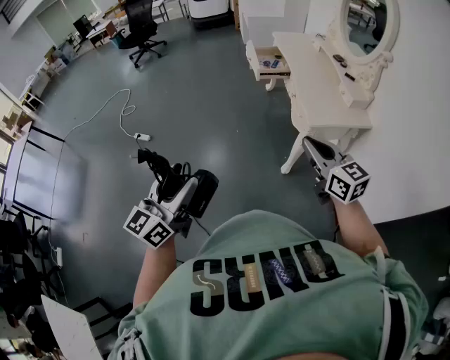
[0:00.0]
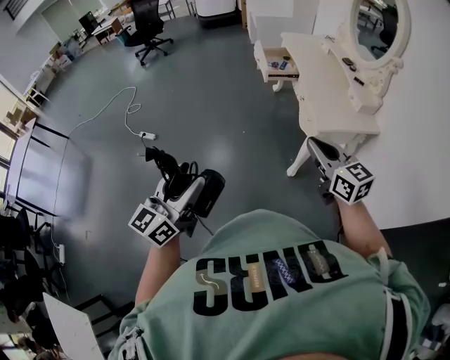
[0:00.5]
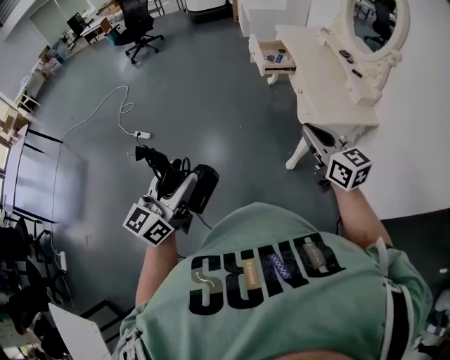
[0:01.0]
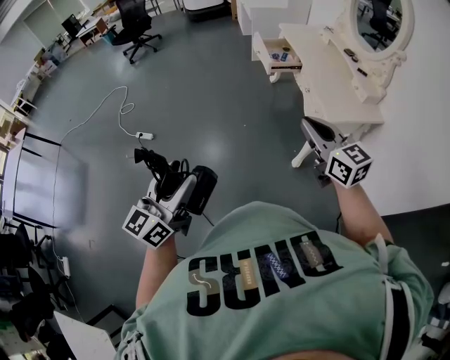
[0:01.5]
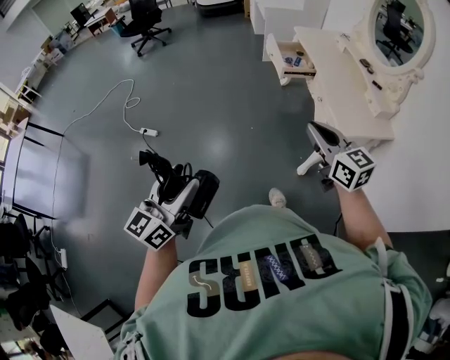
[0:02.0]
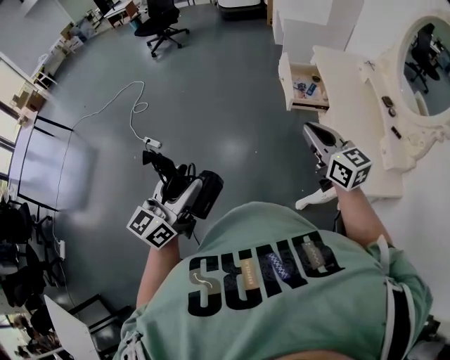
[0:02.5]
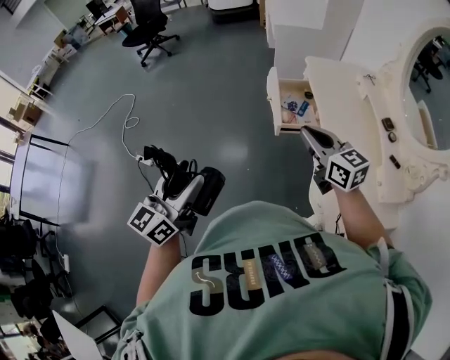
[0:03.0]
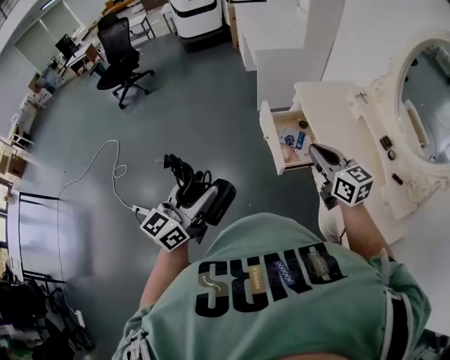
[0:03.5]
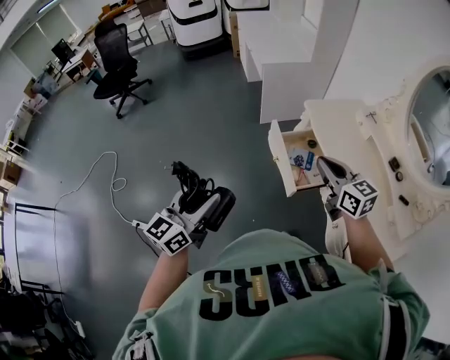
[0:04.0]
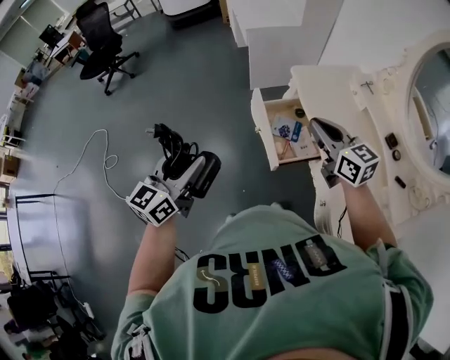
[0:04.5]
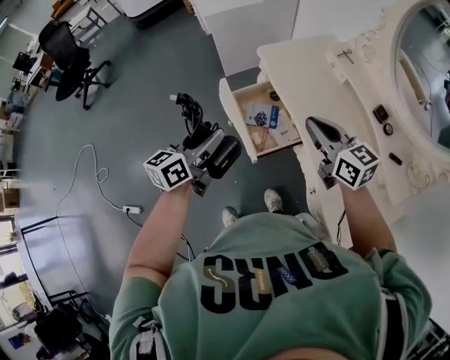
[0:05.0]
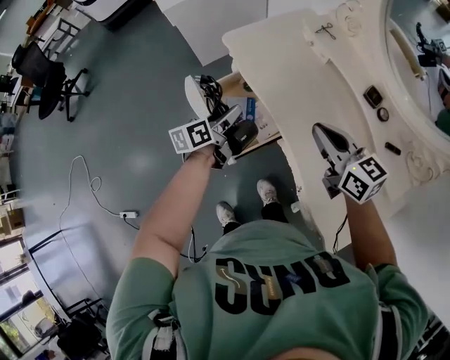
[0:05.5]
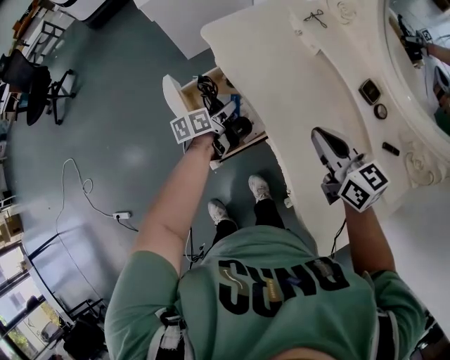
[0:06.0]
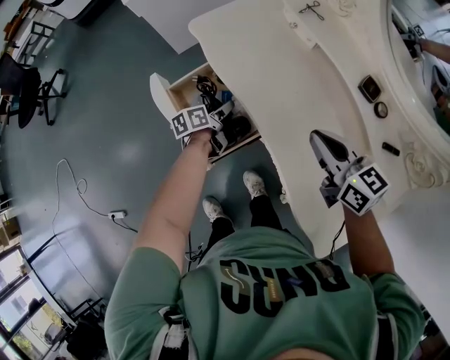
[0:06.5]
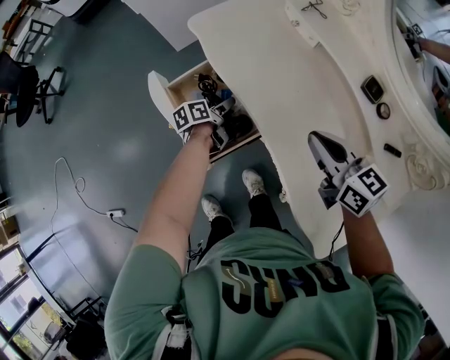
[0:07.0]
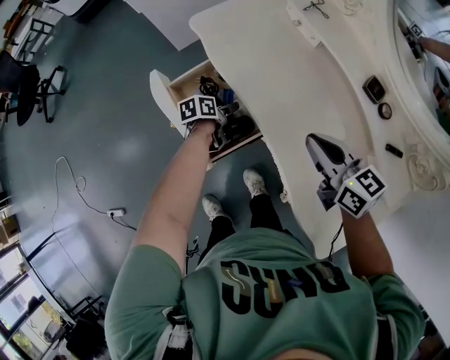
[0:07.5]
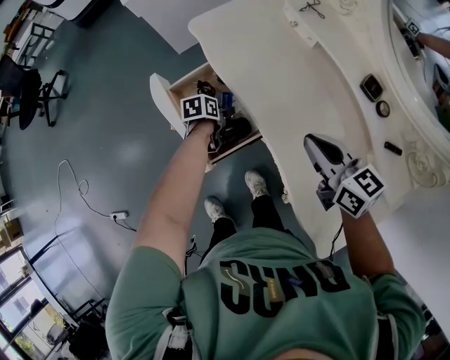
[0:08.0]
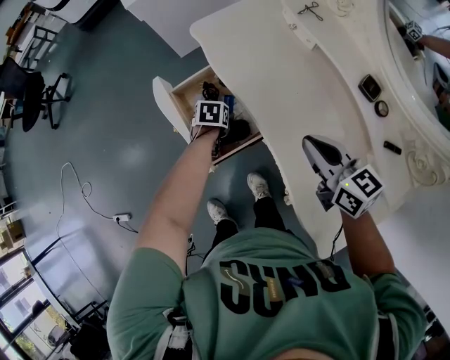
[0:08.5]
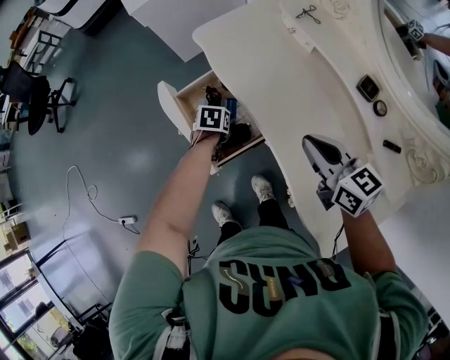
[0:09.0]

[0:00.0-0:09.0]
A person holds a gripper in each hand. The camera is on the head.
0.0 to 2.0 s: The left gripper moves to the left and forward, approximately 15 cm. Meanwhile the right gripper travels forward and to the left by about 20 cm.
2.0 to 4.5 s: The two grippers travel together, forward, about 70 cm.
4.5 to 7.0 s: The right gripper moves to the right and downward, some 30 cm, and changes its angle by roughly 20 degrees. The left gripper is displaced downward, to the right and forward by about 60 cm, and turns by roughly 60 degrees.
7.0 to 9.0 s: The left gripper tips its fingers downward by approximately 40 degrees.

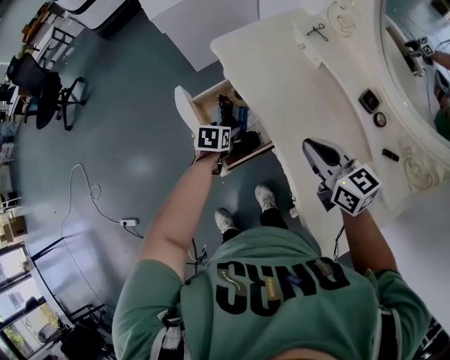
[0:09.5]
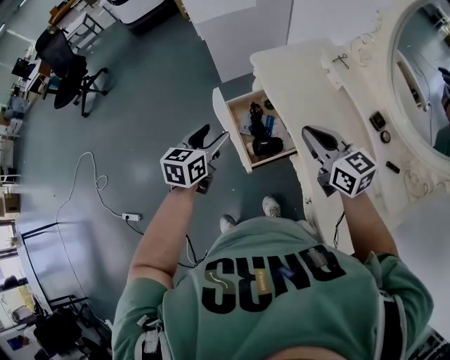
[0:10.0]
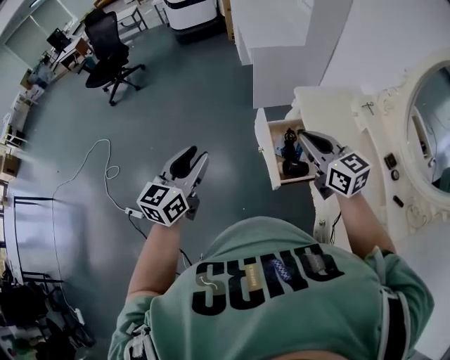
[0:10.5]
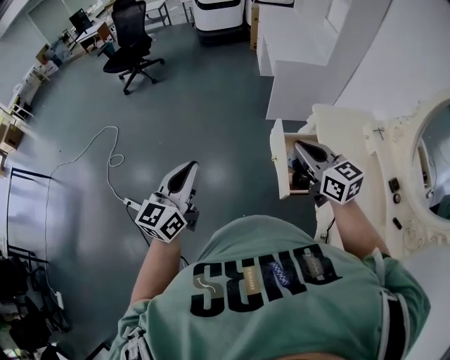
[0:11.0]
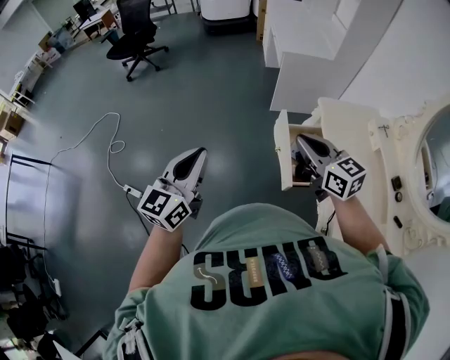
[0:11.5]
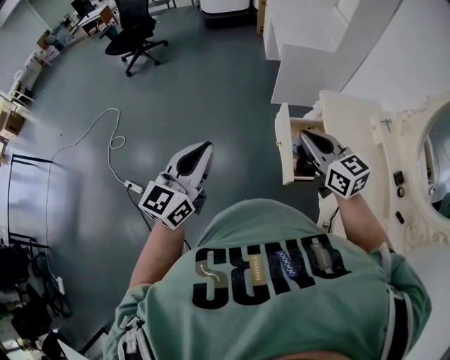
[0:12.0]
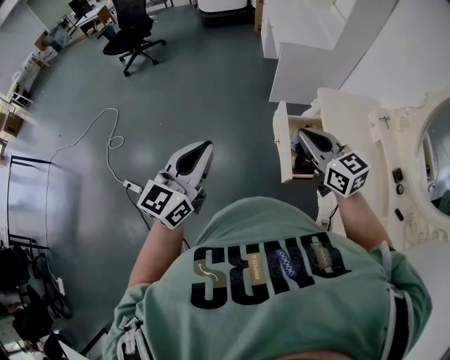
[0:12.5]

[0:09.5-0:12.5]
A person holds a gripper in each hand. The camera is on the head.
9.5 to 11.0 s: The left gripper moves roughly 60 cm, points its fingers approximately 60 degrees further upward, and closes its fingers; the right gripper changes place by some 40 cm, and rotates roughly 30 degrees.
11.0 to 12.5 s: The grippers move only a little.

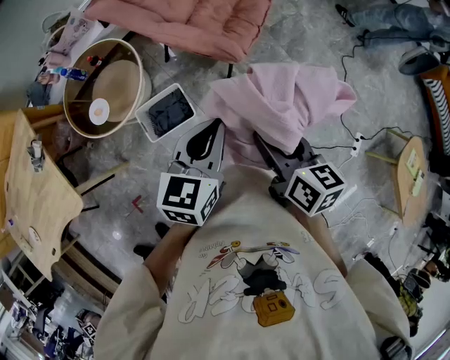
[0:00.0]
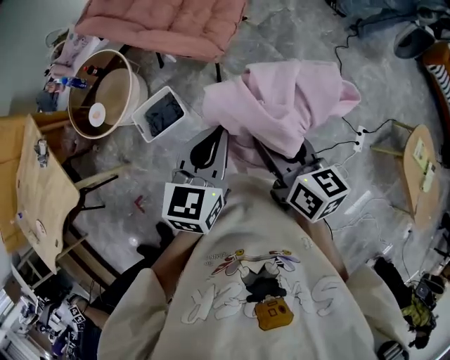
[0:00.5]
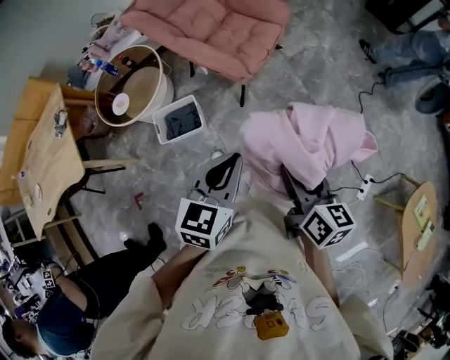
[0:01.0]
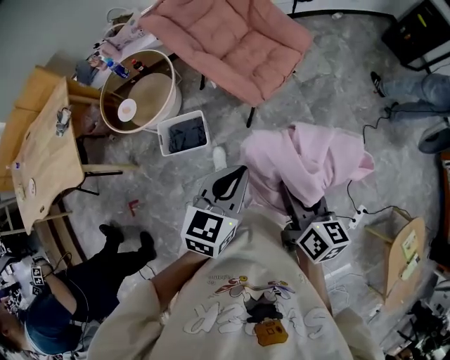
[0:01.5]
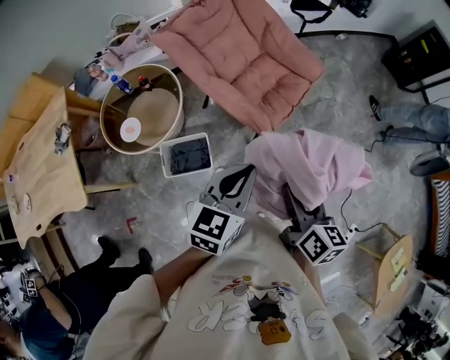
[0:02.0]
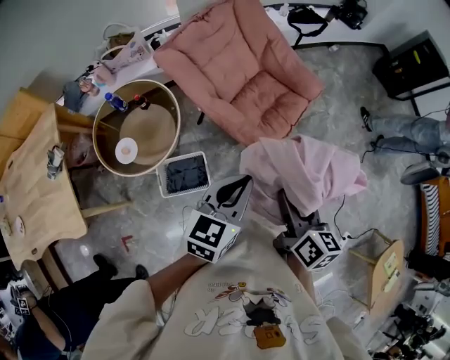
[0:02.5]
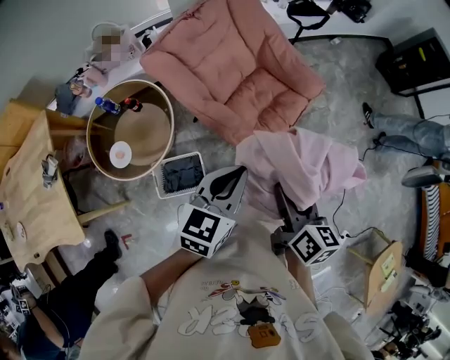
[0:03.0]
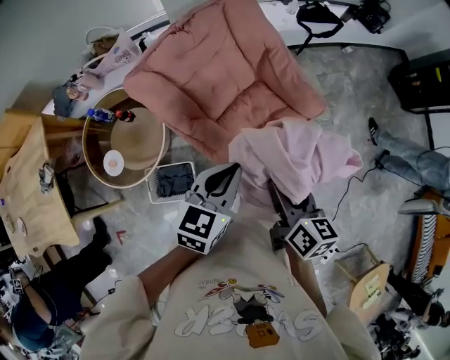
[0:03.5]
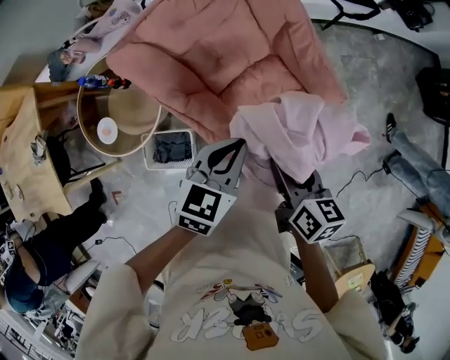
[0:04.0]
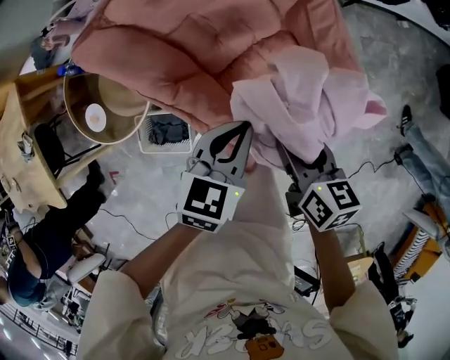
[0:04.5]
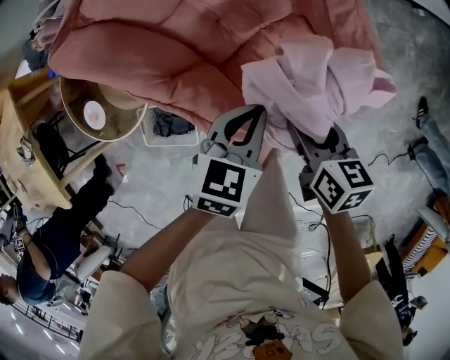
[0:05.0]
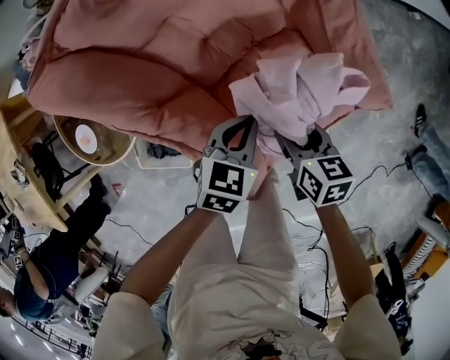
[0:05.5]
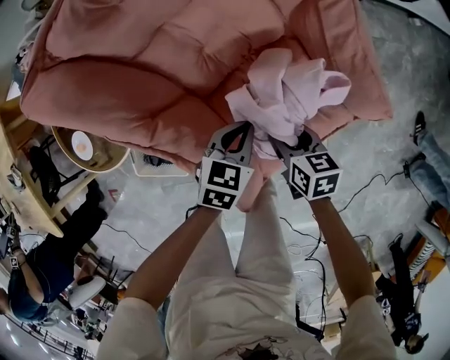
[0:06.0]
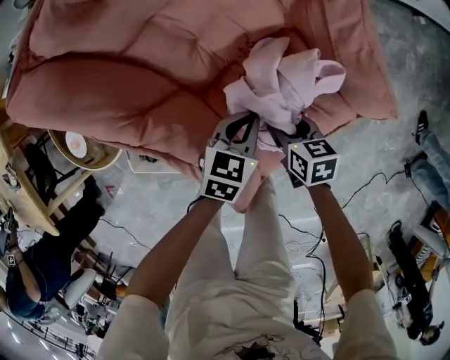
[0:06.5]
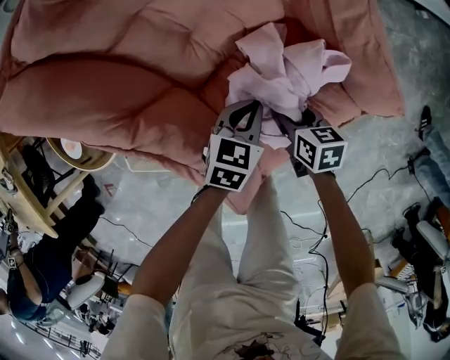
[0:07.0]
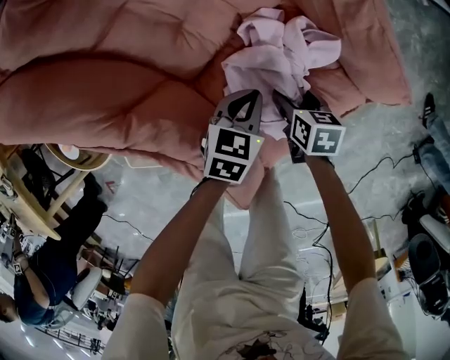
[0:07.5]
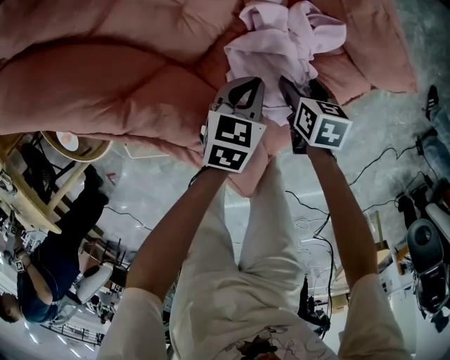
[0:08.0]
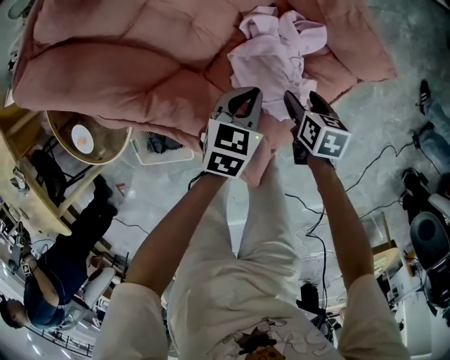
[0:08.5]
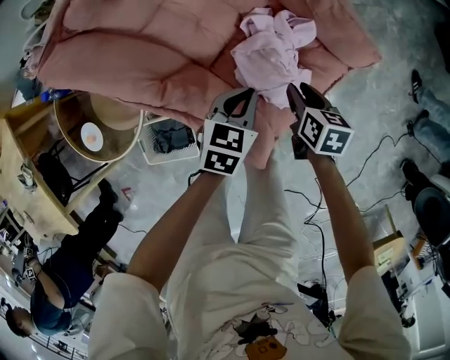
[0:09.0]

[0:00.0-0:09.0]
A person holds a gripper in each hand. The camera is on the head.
0.0 to 2.0 s: Both grippers move forward, some 10 cm. The right gripper moves about 20 cm to the right and comes back.
2.0 to 4.5 s: The two grippers travel together, forward, about 50 cm. The two grippers go some 20 cm downward. The left gripper changes its angle by about 20 degrees. Meanwhile the right gripper swivels some 30 degrees.
4.5 to 7.0 s: The two grippers go about 35 cm downward.
7.0 to 9.0 s: The left gripper heads upward and backward, covering some 15 cm; the right gripper travels upward by some 15 cm, and rotates approximately 20 degrees.

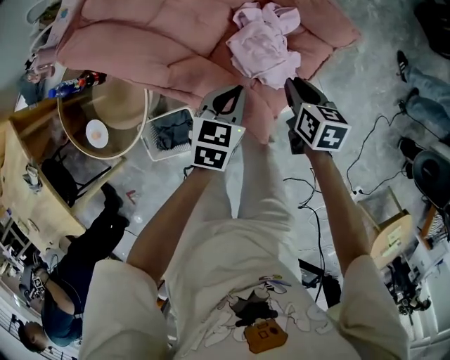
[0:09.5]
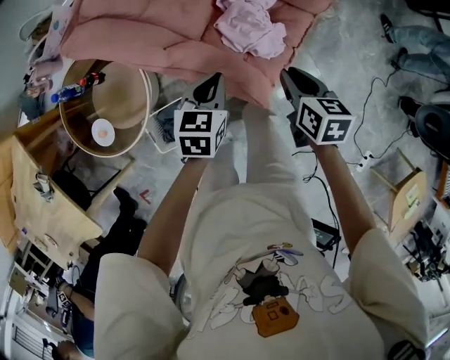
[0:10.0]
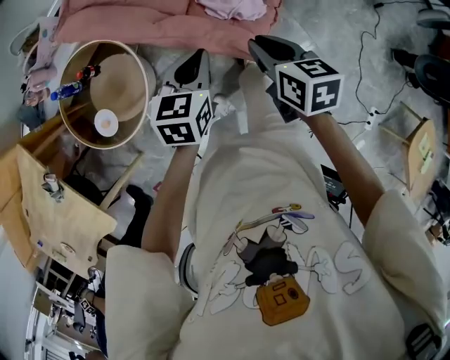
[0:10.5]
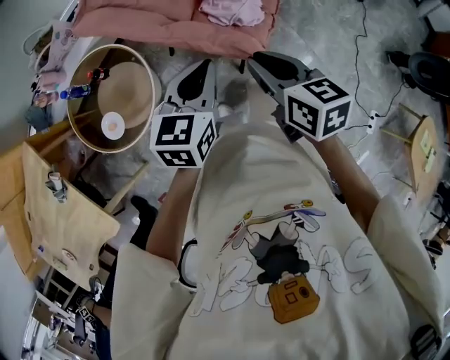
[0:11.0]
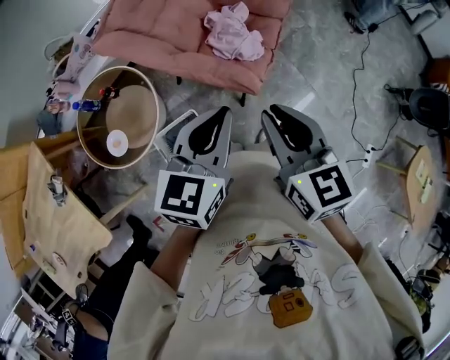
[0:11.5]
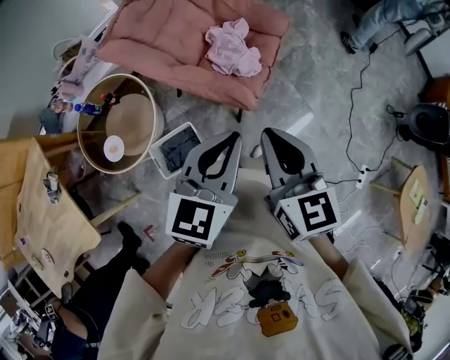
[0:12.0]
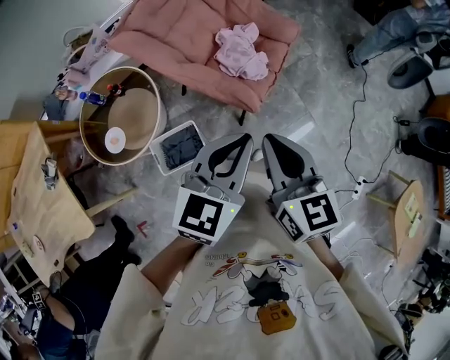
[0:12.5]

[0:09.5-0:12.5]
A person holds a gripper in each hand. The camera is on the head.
9.5 to 11.0 s: The left gripper shifts some 30 cm upward and backward; the right gripper shifts roughly 40 cm backward, upward and to the left.
11.0 to 12.5 s: The left gripper travels upward, to the right and backward by roughly 20 cm; the right gripper is displaced upward, backward and to the right by about 15 cm.

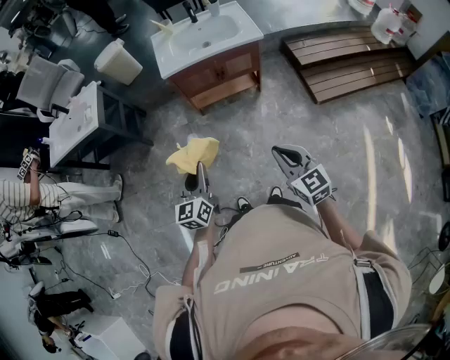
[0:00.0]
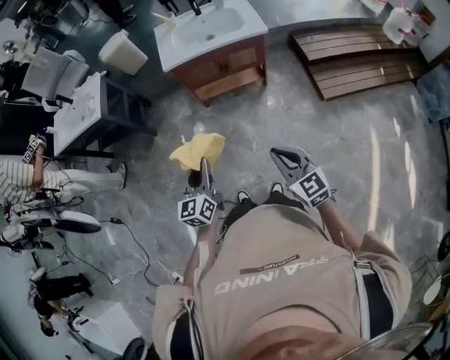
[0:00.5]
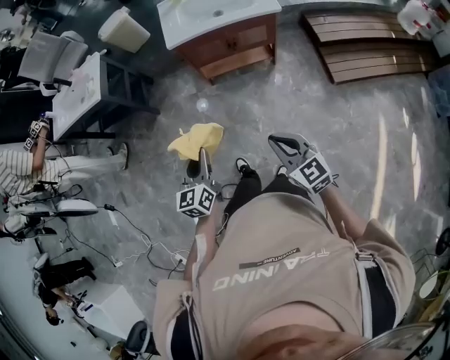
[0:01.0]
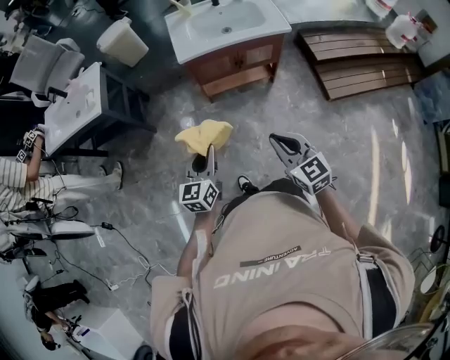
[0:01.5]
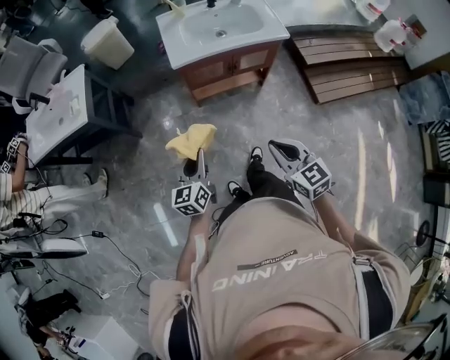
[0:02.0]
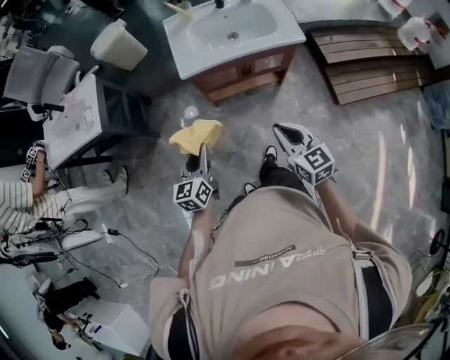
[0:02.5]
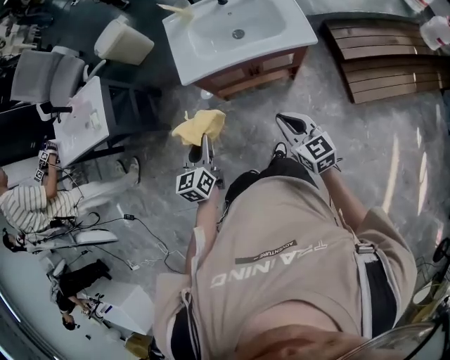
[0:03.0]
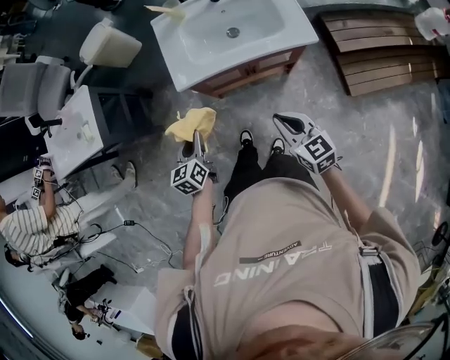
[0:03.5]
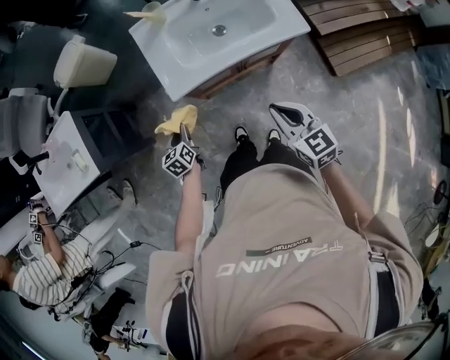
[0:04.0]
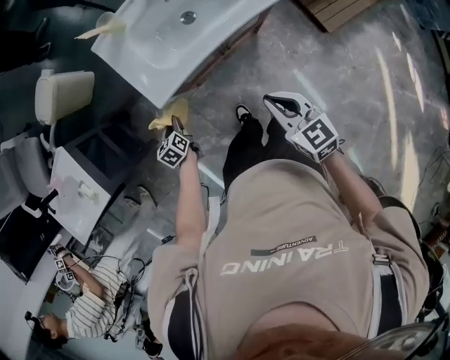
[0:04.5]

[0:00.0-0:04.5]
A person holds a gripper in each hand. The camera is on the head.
0.0 to 2.0 s: Both grippers move forward and to the left, about 20 cm.
2.0 to 4.5 s: The right gripper goes roughly 30 cm forward. The left gripper moves forward and downward, approximately 50 cm, and tilts its fingers approximately 30 degrees downward.
